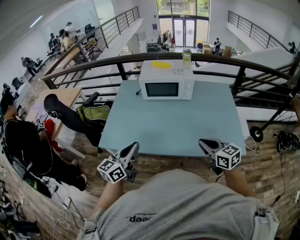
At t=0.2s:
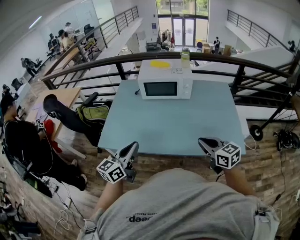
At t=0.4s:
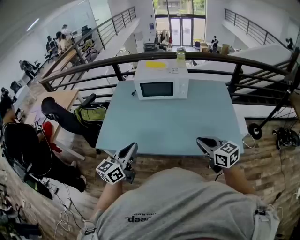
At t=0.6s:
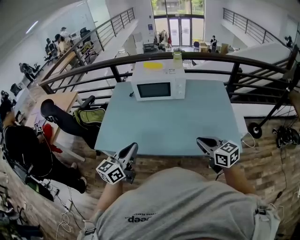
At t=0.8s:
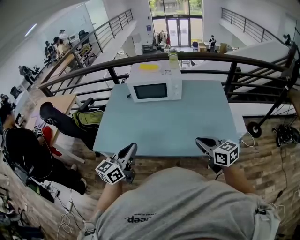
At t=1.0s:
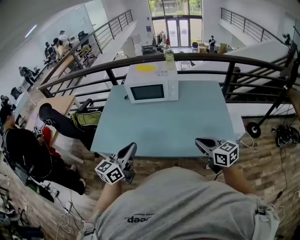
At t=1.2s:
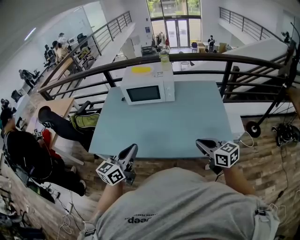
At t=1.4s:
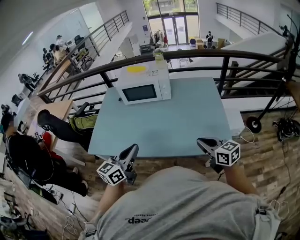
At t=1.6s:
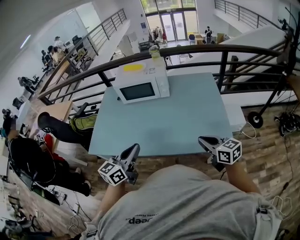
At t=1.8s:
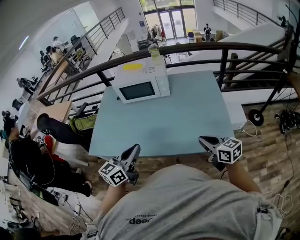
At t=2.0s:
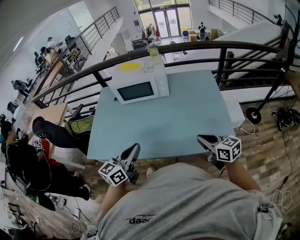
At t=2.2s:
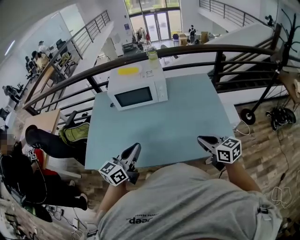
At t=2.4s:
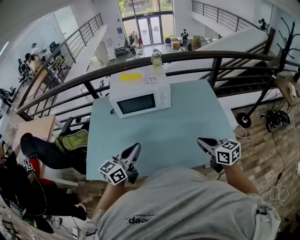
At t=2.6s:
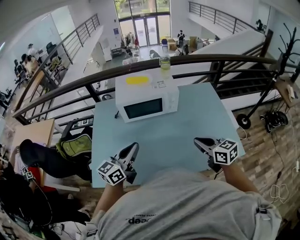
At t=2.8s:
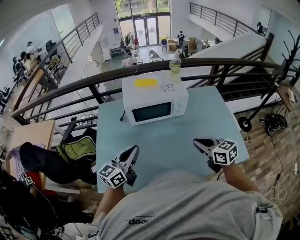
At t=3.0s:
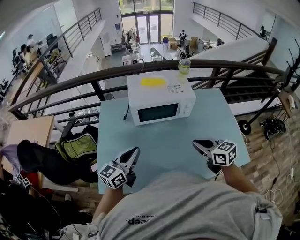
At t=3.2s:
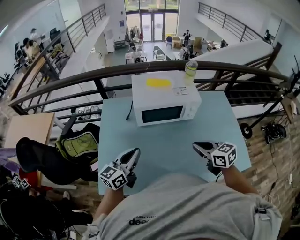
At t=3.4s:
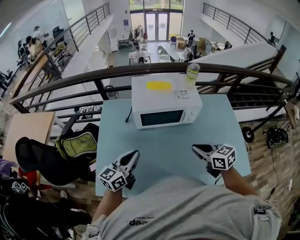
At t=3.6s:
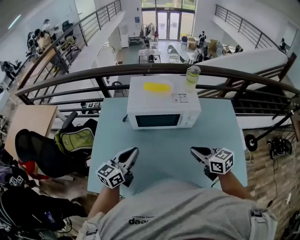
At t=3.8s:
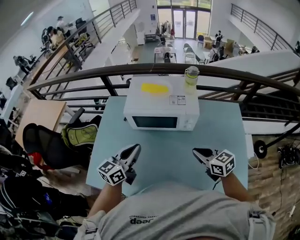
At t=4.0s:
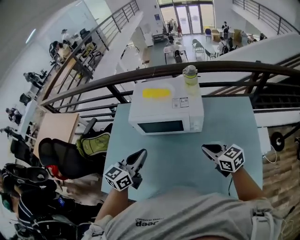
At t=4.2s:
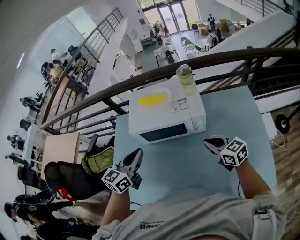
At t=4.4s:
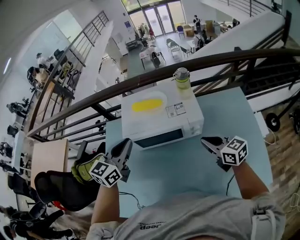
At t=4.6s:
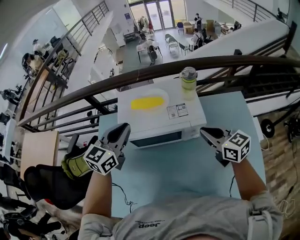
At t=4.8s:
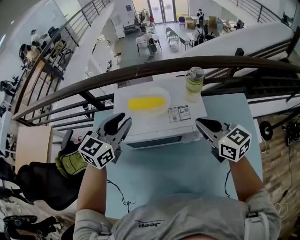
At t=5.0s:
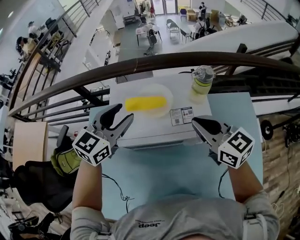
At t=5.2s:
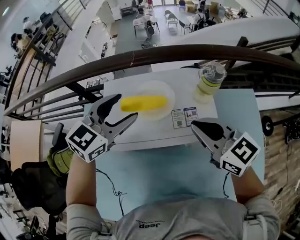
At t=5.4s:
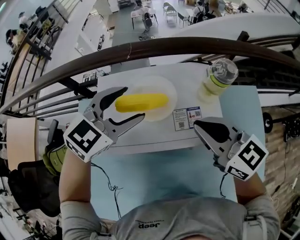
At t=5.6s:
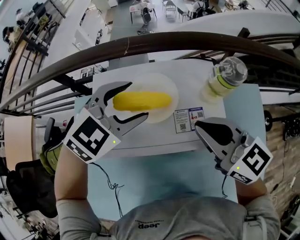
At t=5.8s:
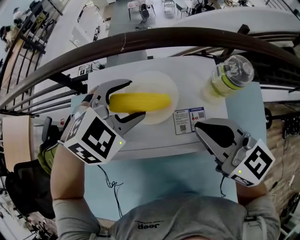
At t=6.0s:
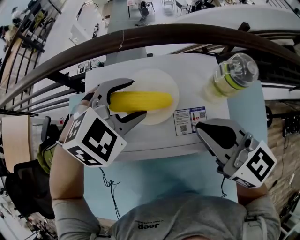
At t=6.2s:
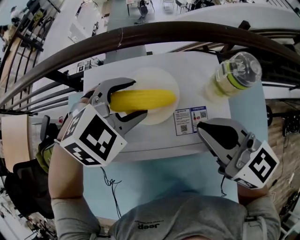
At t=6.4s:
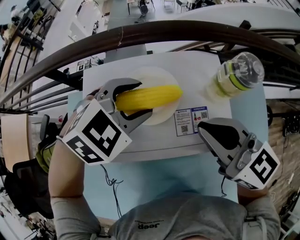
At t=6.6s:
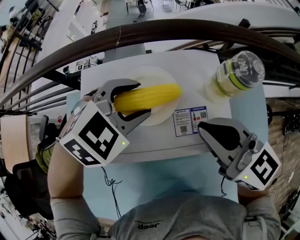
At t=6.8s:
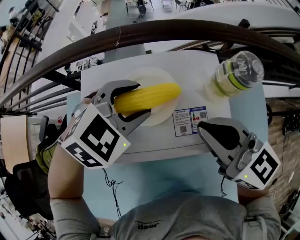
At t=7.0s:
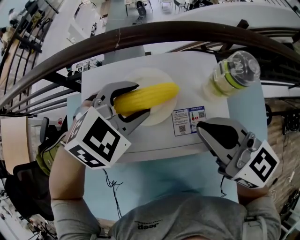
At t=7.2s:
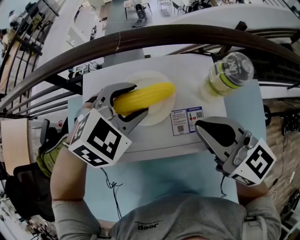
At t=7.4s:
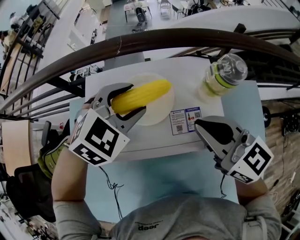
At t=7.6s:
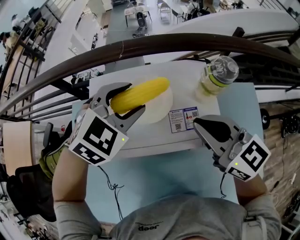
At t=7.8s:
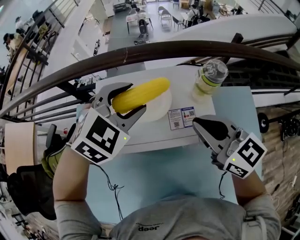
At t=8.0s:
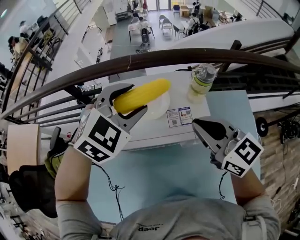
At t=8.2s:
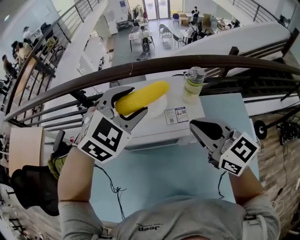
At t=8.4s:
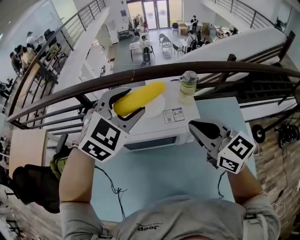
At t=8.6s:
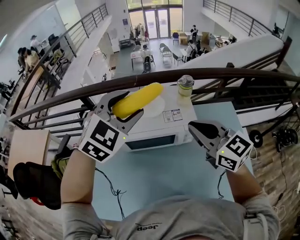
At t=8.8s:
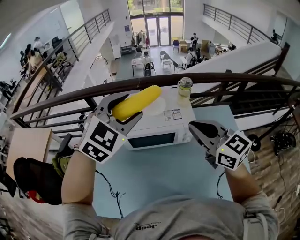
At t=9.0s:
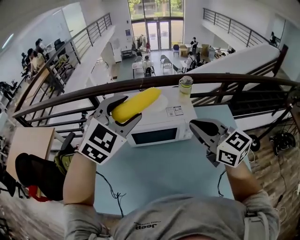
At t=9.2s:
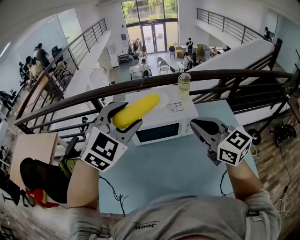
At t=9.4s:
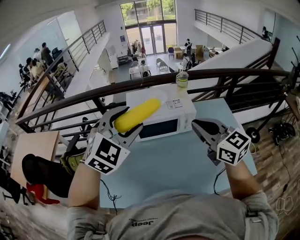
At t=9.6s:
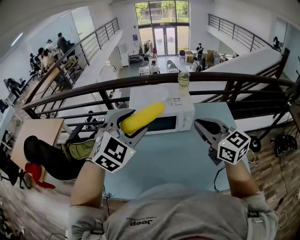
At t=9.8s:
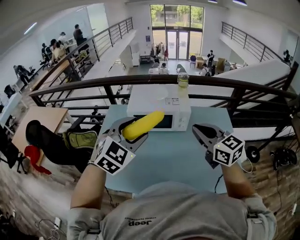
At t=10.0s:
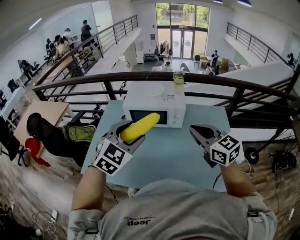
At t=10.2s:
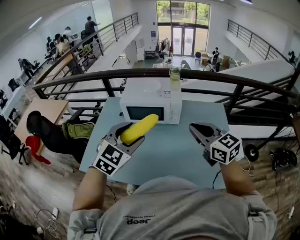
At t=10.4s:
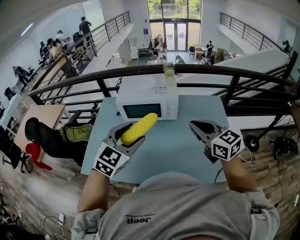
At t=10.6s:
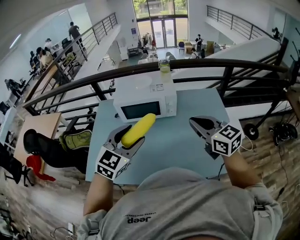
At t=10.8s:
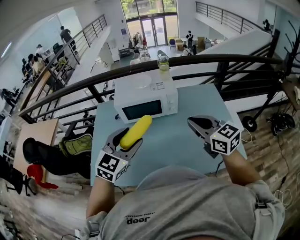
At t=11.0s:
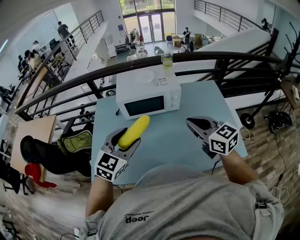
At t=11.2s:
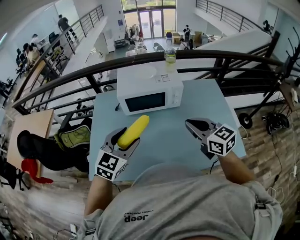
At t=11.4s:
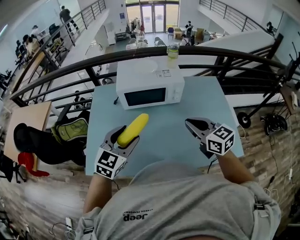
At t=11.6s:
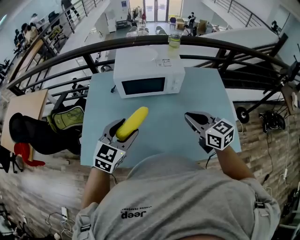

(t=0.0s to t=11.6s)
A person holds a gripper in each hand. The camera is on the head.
t=0.0s - t=1.4s: Both grippers move to the right, roughly 15 cm.
t=1.4s - t=2.8s: The left gripper heads forward and to the left, covering about 30 cm. The right gripper goes some 30 cm to the left and forward.
t=2.8s - t=4.4s: Both grippers travel together forward, some 25 cm. The left gripper turns by roughly 20 degrees.
t=4.4s - t=5.8s: The right gripper heads forward and to the left, covering approximately 20 cm; the left gripper shifts roughly 25 cm forward and downward, tilts its fingers about 30 degrees downward, and opens its fingers.
t=5.8s - t=7.2s: The grippers move only a little.
t=7.2s - t=8.8s: The right gripper travels backward and upward by approximately 25 cm. Meanwhile the left gripper is displaced upward and backward by some 35 cm, and changes its angle by roughly 30 degrees.
t=8.8s - t=10.2s: The right gripper moves backward and to the right, roughly 25 cm. Meanwhile the left gripper moves backward, roughly 30 cm.
t=10.2s - t=11.6s: The left gripper is displaced to the left and downward by approximately 15 cm. Meanwhile the right gripper travels downward and to the left by about 15 cm.

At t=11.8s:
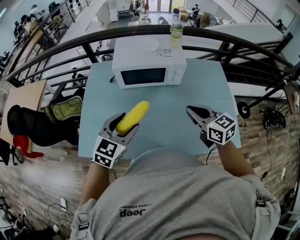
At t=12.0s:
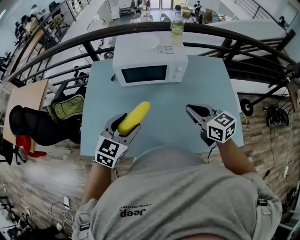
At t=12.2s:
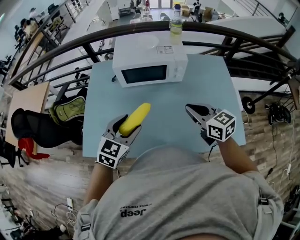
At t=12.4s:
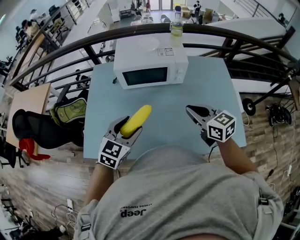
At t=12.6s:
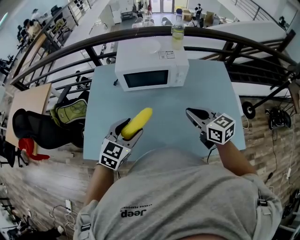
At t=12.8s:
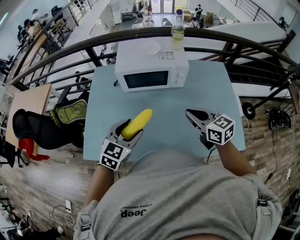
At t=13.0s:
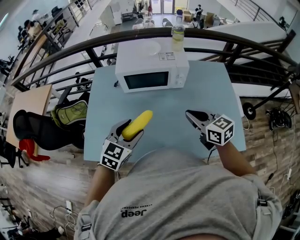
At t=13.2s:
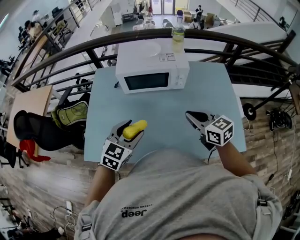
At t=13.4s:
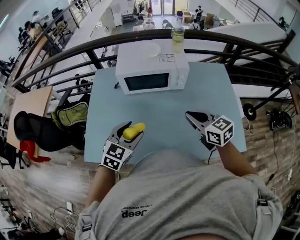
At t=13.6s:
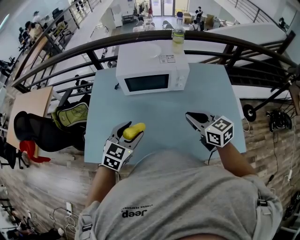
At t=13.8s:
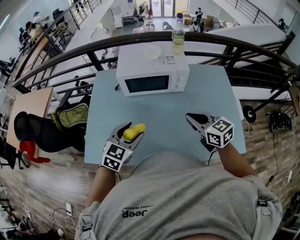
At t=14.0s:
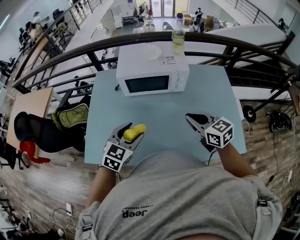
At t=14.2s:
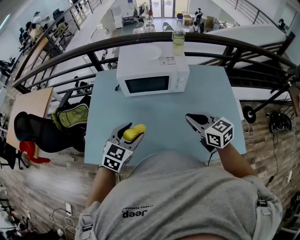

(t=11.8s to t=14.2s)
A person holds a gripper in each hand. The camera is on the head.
t=11.8s - t=13.0s: The grippers move only a little.
t=13.0s - t=14.2s: Both grippers stay put.

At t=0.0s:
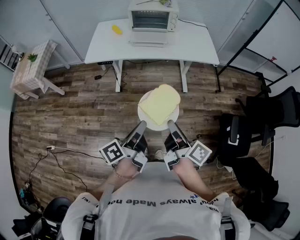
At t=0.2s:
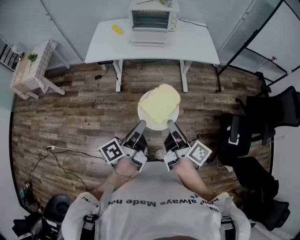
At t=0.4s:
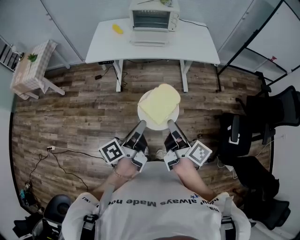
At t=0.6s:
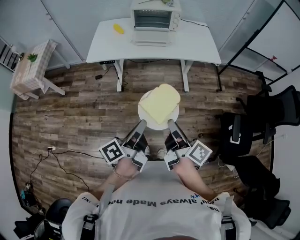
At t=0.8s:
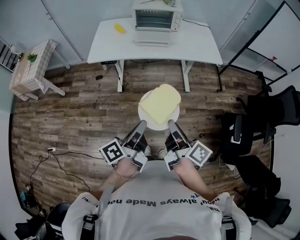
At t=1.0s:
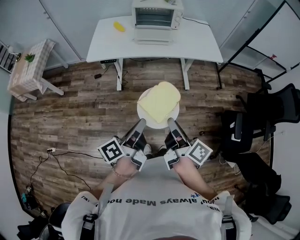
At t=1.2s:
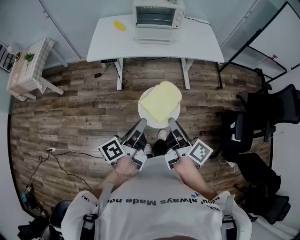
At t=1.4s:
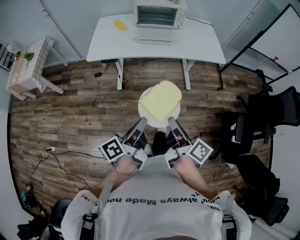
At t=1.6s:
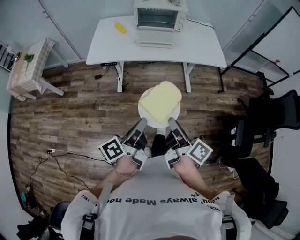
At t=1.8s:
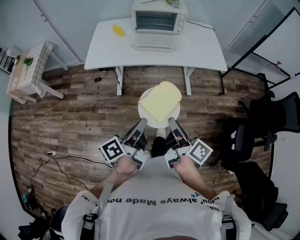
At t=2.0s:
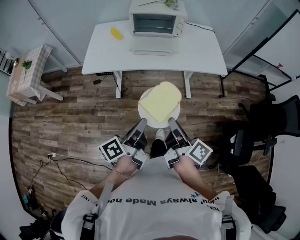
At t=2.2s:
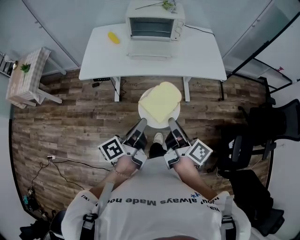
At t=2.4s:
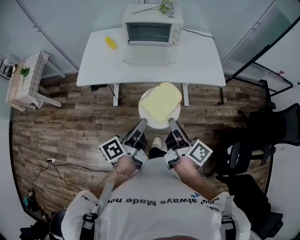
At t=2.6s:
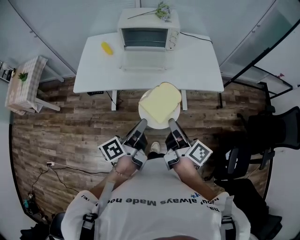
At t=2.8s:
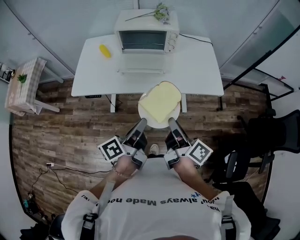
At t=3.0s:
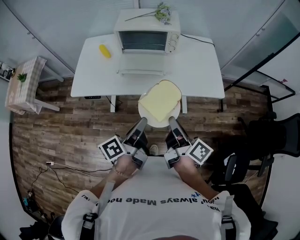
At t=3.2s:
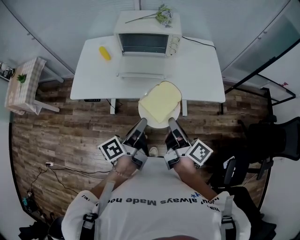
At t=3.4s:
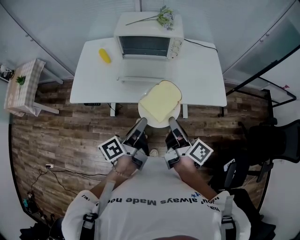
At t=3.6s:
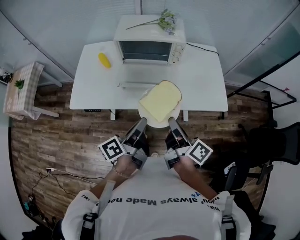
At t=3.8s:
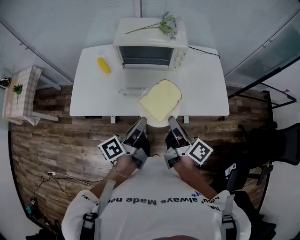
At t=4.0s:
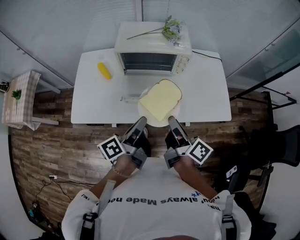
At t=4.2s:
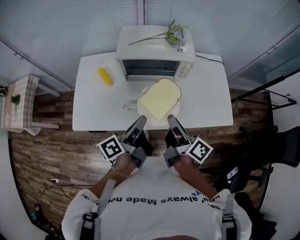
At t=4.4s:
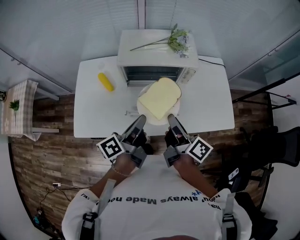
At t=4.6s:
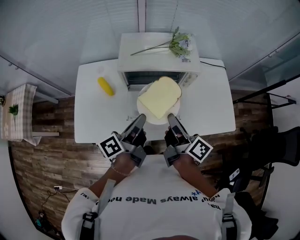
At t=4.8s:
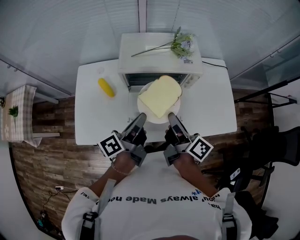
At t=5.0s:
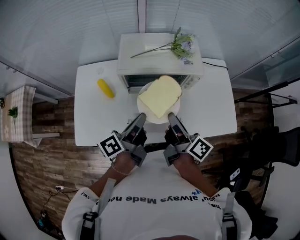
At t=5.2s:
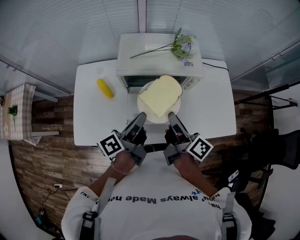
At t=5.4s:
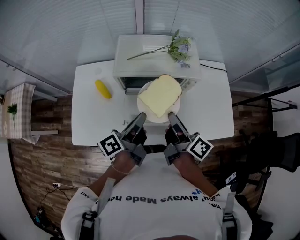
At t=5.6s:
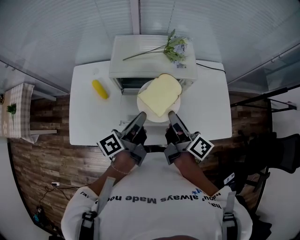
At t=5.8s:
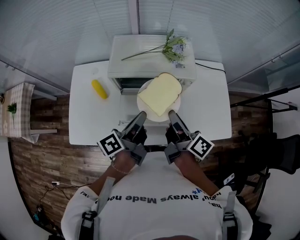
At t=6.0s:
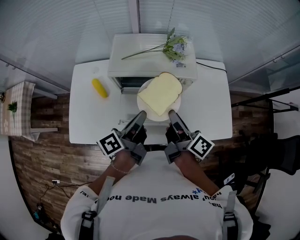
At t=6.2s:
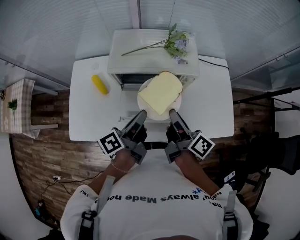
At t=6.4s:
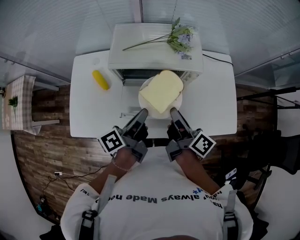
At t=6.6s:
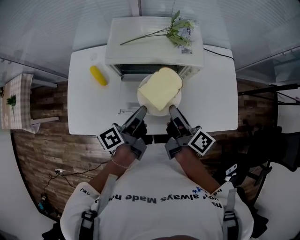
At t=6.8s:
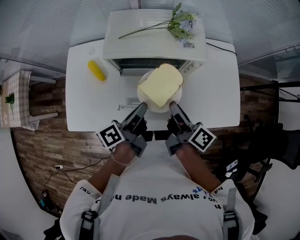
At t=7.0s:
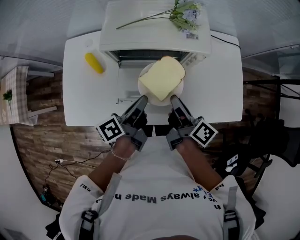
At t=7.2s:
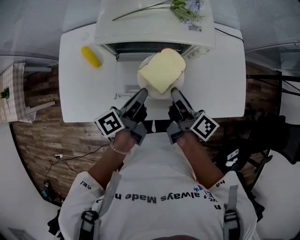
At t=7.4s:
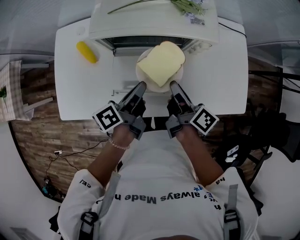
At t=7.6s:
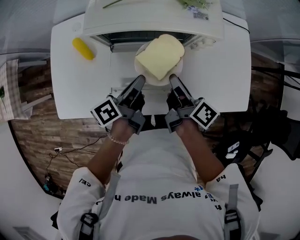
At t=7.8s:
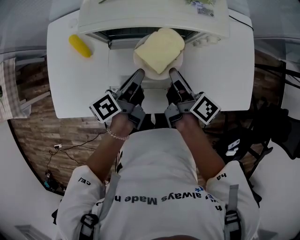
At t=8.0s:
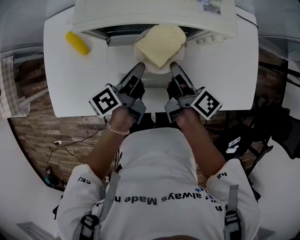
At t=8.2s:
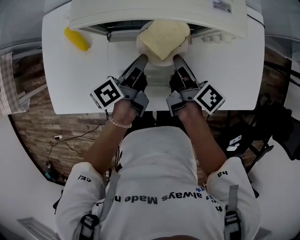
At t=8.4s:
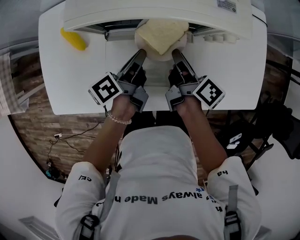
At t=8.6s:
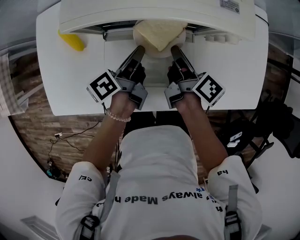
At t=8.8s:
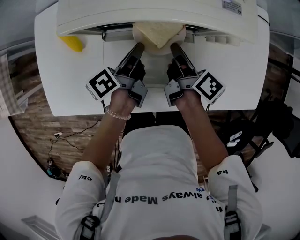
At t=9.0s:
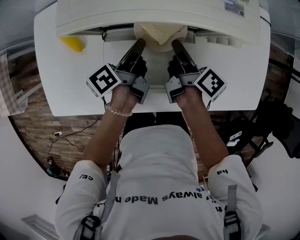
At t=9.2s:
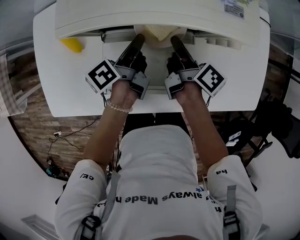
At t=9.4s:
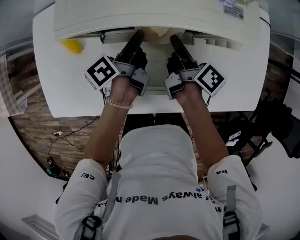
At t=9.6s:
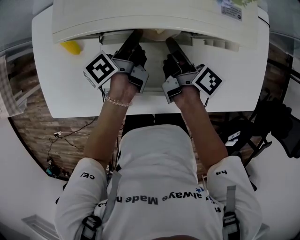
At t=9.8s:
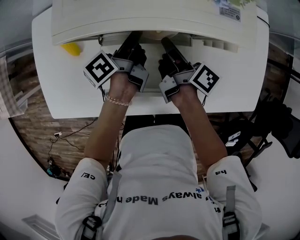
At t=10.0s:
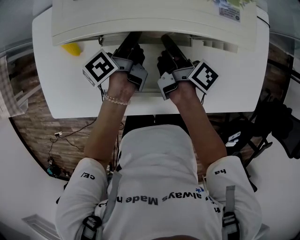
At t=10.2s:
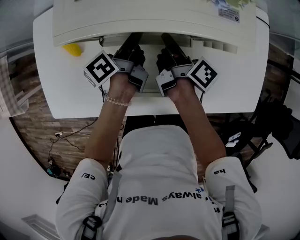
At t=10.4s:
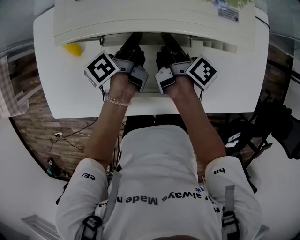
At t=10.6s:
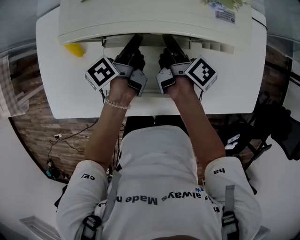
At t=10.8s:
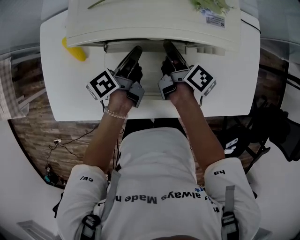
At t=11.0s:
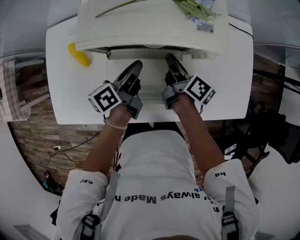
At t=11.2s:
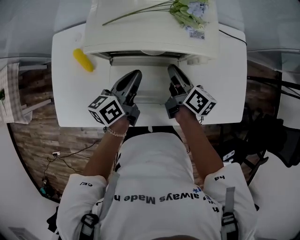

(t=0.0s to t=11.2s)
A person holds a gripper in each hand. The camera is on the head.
t=0.0s - t=1.6s: The left gripper heads forward and to the left, covering about 10 cm, while the right gripper moves to the left and forward, about 10 cm.
t=1.6s - t=3.2s: Both grippers move forward, roughly 30 cm.
t=3.2s - t=4.8s: The grippers both shift forward and to the left by roughly 35 cm.
t=4.8s - t=6.4s: The left gripper is displaced to the right by some 5 cm; the right gripper shifts by some 5 cm.
t=6.4s - t=8.0s: The left gripper is displaced downward and forward by about 20 cm; the right gripper moves downward, some 20 cm.
t=8.0s - t=9.6s: The two grippers go some 10 cm forward and downward.
t=9.6s - t=11.2s: The left gripper is displaced upward and backward by some 15 cm, and rotates about 30 degrees. The right gripper moves upward, about 10 cm, and swivels approximately 20 degrees.
